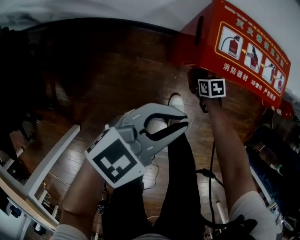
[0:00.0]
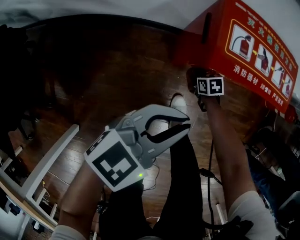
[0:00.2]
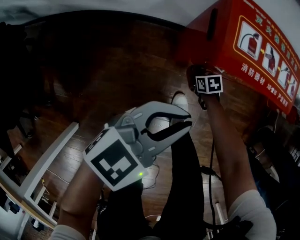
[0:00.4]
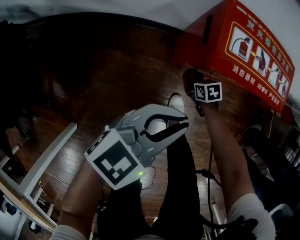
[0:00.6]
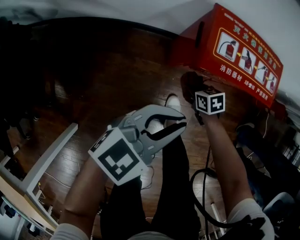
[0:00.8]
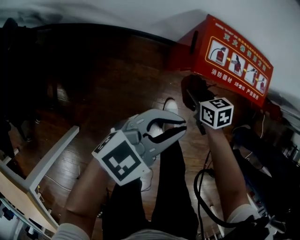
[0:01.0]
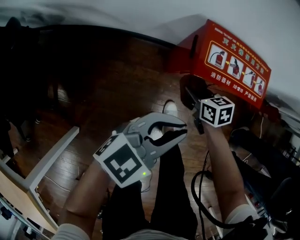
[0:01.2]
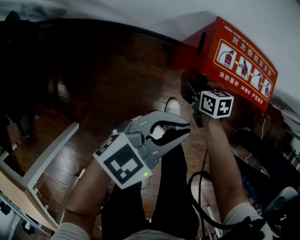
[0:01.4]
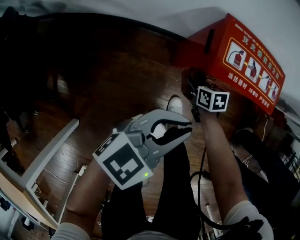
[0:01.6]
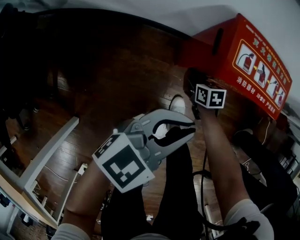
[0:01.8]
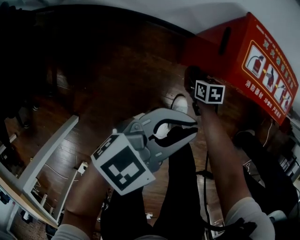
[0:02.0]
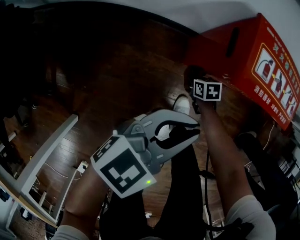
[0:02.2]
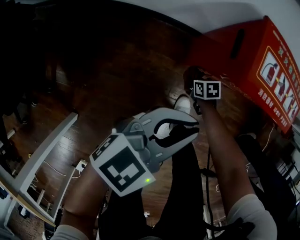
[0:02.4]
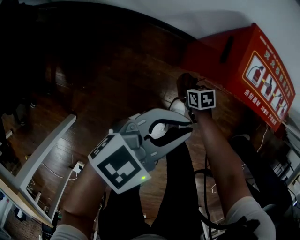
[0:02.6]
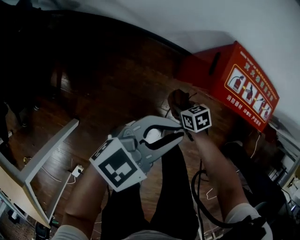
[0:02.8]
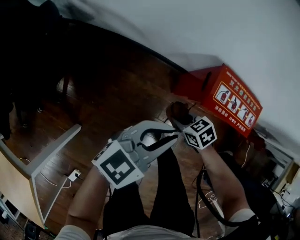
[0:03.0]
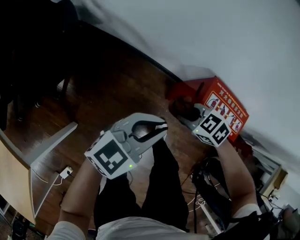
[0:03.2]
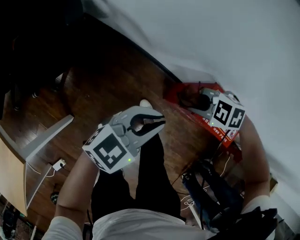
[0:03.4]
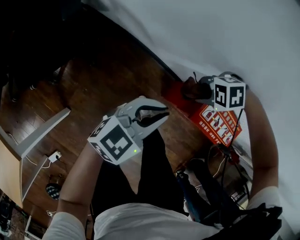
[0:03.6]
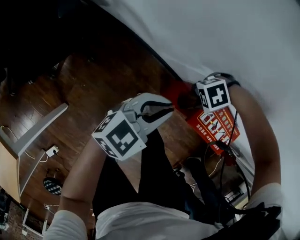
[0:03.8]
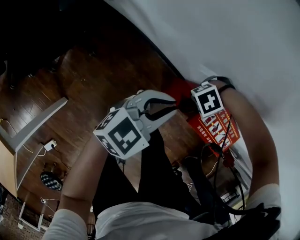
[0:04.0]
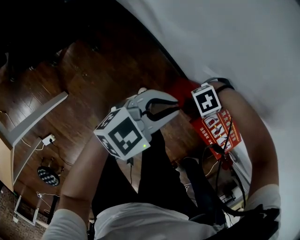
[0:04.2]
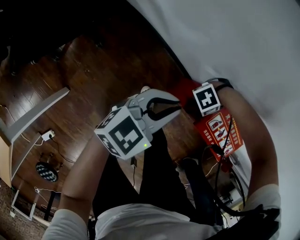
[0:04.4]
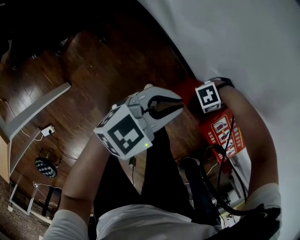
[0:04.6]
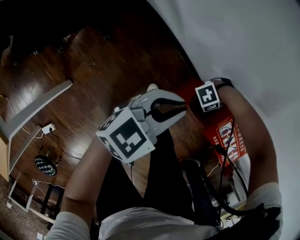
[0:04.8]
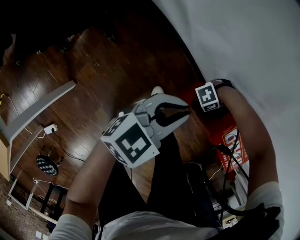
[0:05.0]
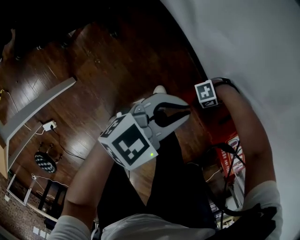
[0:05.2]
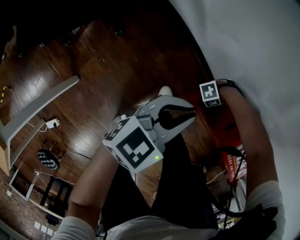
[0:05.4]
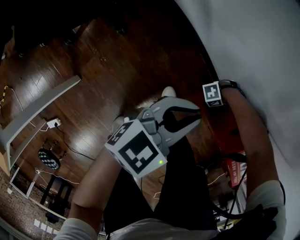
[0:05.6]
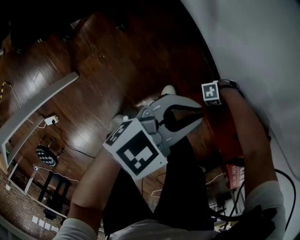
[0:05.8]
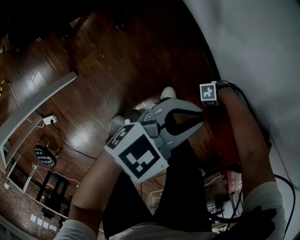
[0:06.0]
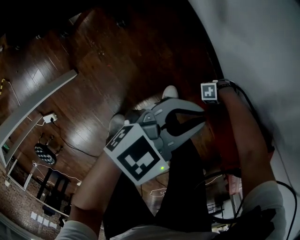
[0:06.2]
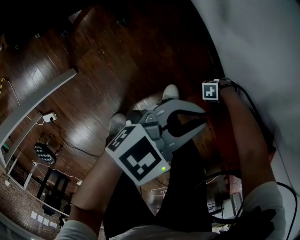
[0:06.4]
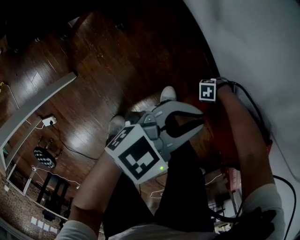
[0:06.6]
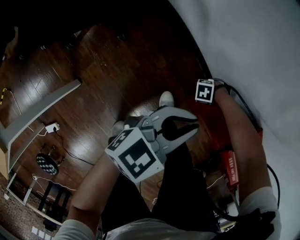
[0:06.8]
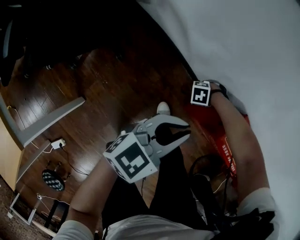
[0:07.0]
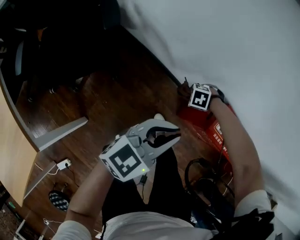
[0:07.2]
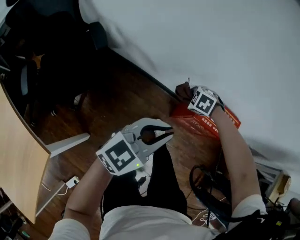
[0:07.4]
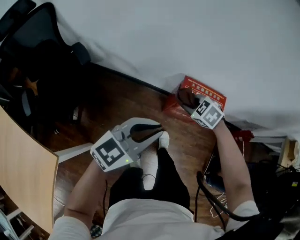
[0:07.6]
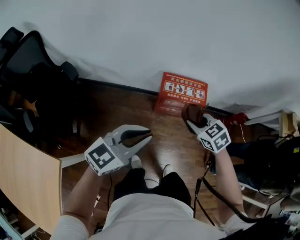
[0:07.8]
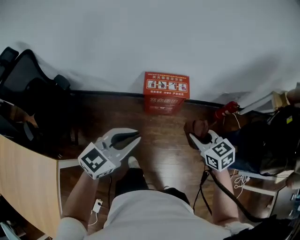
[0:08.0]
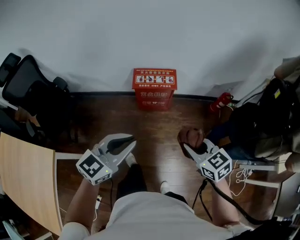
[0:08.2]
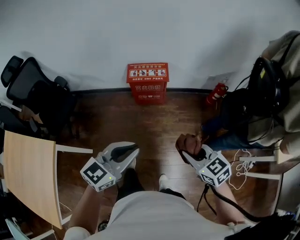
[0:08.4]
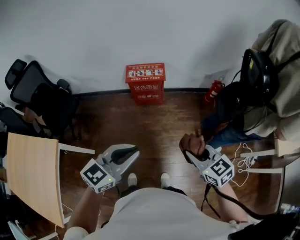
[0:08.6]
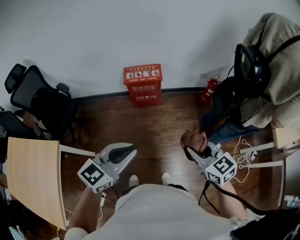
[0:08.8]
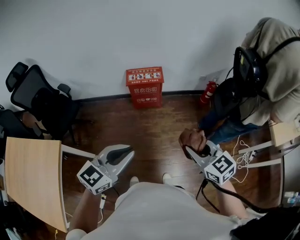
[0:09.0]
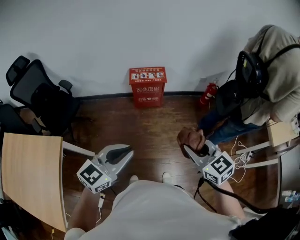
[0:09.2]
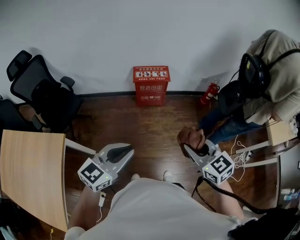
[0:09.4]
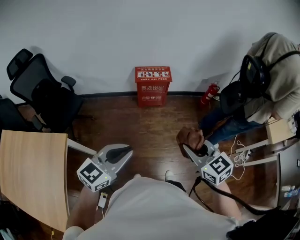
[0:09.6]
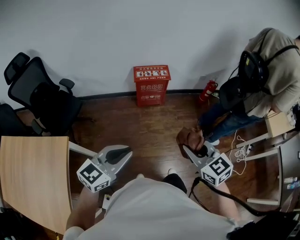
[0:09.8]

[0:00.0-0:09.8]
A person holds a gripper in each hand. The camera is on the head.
0:00.0 to 0:01.4: The left gripper ends up about 5 cm from where it was; the right gripper moves up and down over some 25 cm, changing direction 2 times.
0:01.4 to 0:02.8: The right gripper goes downward and returns, roughly 20 cm each way, and swivels some 30 degrees. Meanwhile the left gripper ends up some 5 cm from where it was.
0:02.8 to 0:04.2: The left gripper shifts by approximately 15 cm, and rotates about 20 degrees. Meanwhile the right gripper moves upward, about 20 cm, and turns by roughly 120 degrees.
0:04.2 to 0:05.6: The left gripper travels downward and backward by about 10 cm. The right gripper goes approximately 25 cm downward.
0:05.6 to 0:07.0: The left gripper is displaced upward and to the right by roughly 15 cm. The right gripper moves backward and upward, some 15 cm, and tilts its fingers roughly 40 degrees downward.
0:07.0 to 0:08.4: The pair of grippers is taken approximately 60 cm. The left gripper changes its angle by some 30 degrees. Meanwhile the right gripper tips its fingers upward by approximately 30 degrees.
0:08.4 to 0:09.8: The right gripper is displaced backward, to the left and upward by roughly 20 cm; the left gripper shifts approximately 20 cm to the left and backward.

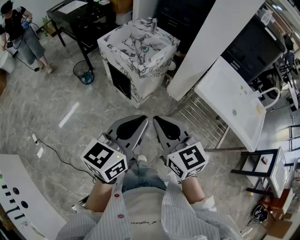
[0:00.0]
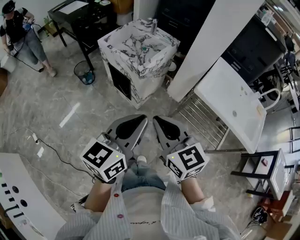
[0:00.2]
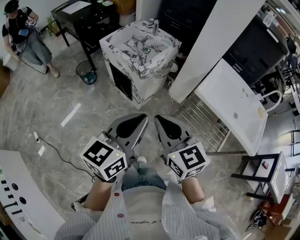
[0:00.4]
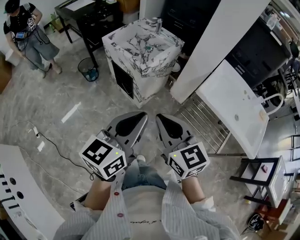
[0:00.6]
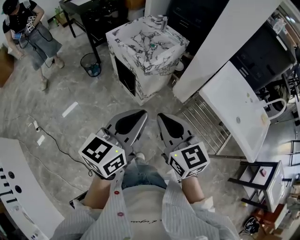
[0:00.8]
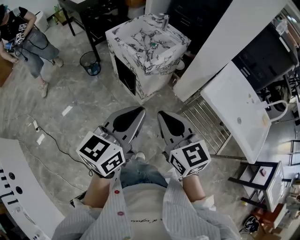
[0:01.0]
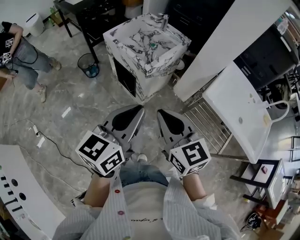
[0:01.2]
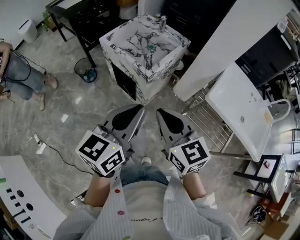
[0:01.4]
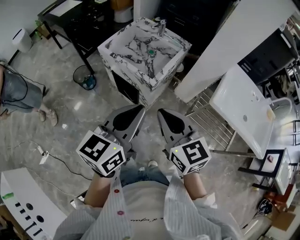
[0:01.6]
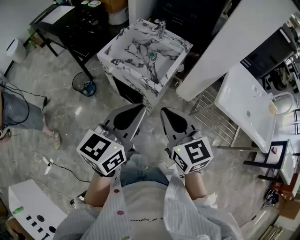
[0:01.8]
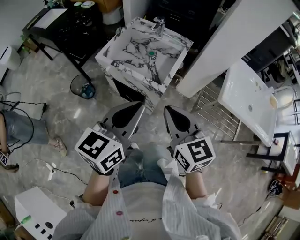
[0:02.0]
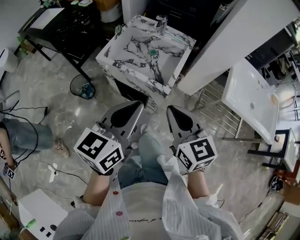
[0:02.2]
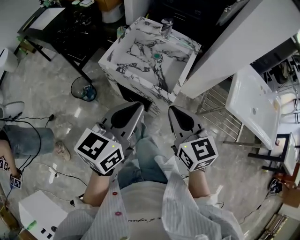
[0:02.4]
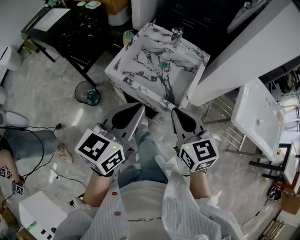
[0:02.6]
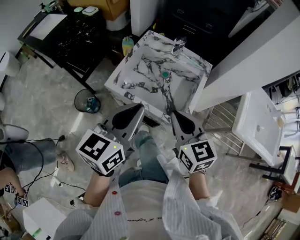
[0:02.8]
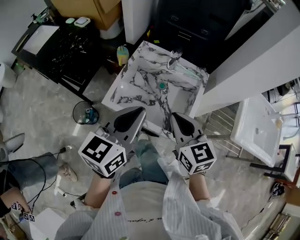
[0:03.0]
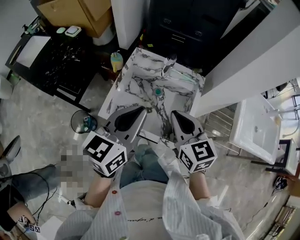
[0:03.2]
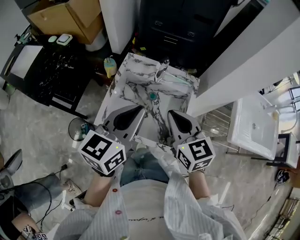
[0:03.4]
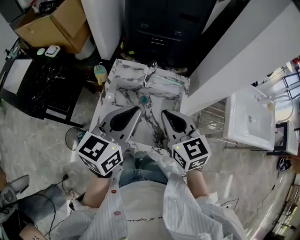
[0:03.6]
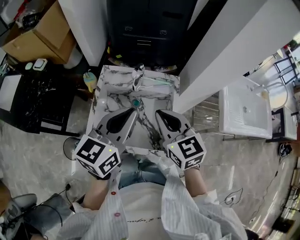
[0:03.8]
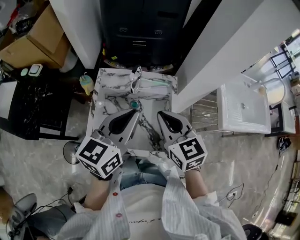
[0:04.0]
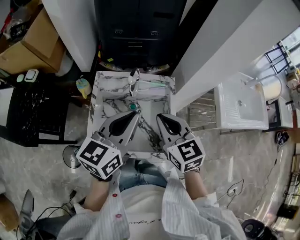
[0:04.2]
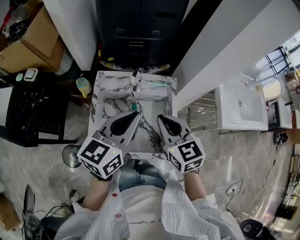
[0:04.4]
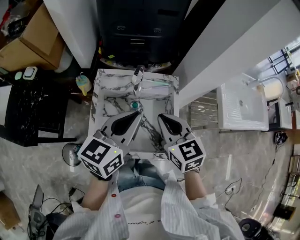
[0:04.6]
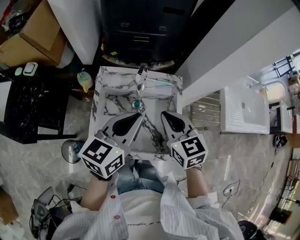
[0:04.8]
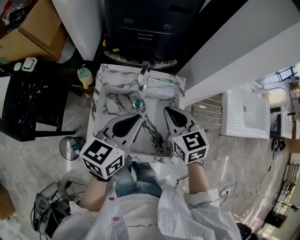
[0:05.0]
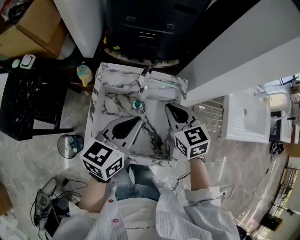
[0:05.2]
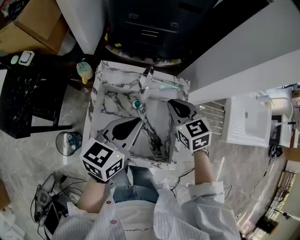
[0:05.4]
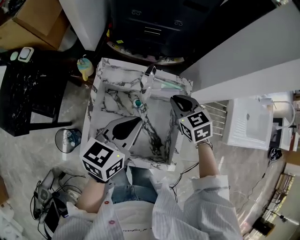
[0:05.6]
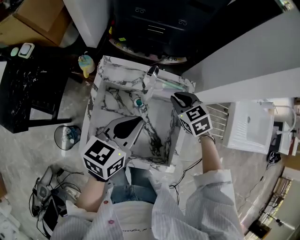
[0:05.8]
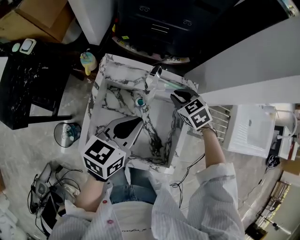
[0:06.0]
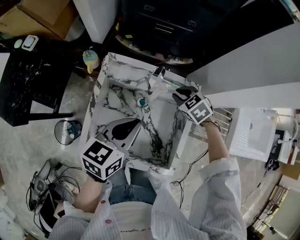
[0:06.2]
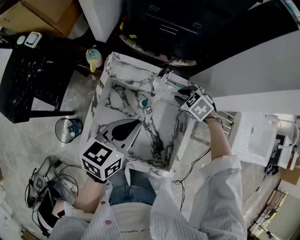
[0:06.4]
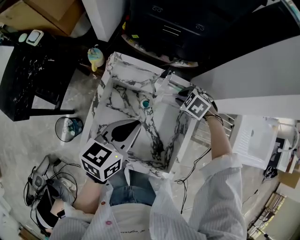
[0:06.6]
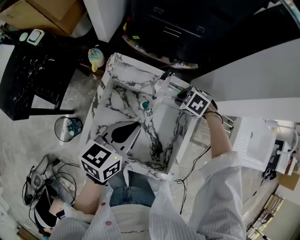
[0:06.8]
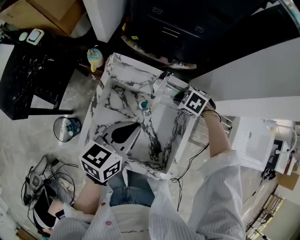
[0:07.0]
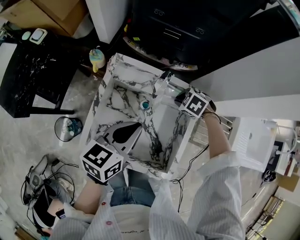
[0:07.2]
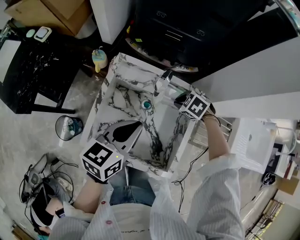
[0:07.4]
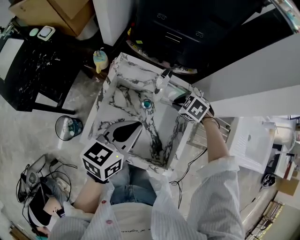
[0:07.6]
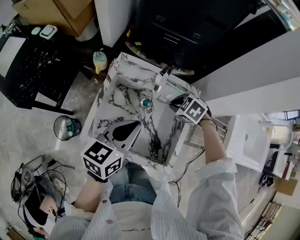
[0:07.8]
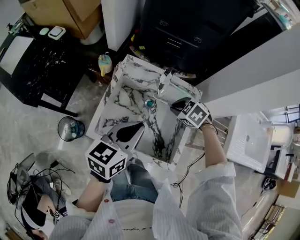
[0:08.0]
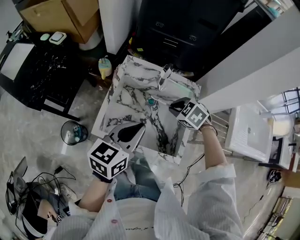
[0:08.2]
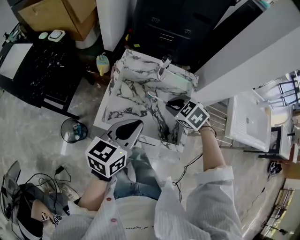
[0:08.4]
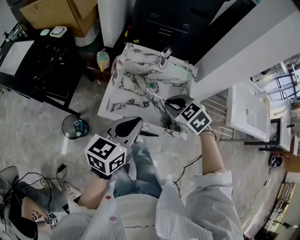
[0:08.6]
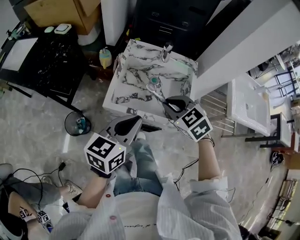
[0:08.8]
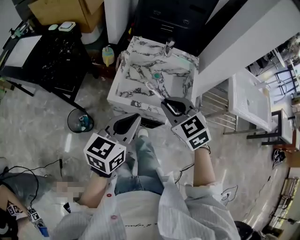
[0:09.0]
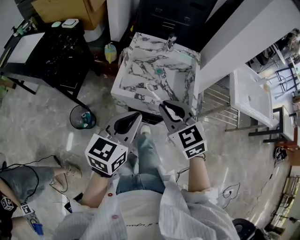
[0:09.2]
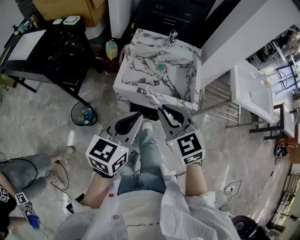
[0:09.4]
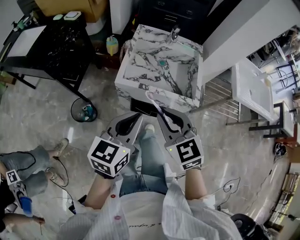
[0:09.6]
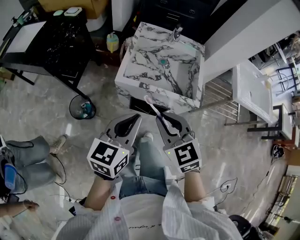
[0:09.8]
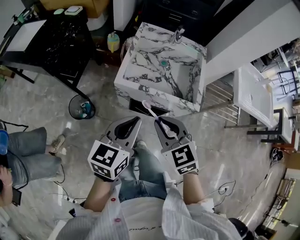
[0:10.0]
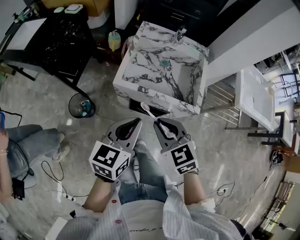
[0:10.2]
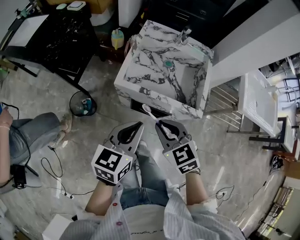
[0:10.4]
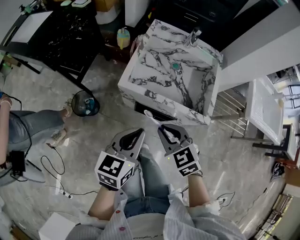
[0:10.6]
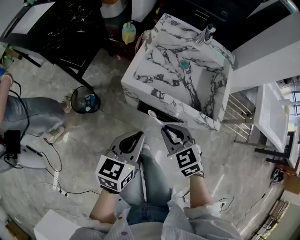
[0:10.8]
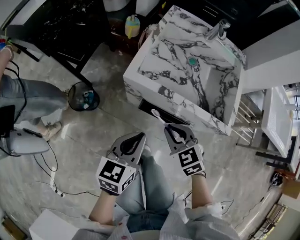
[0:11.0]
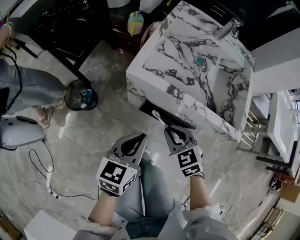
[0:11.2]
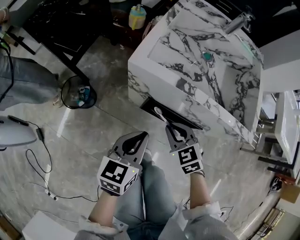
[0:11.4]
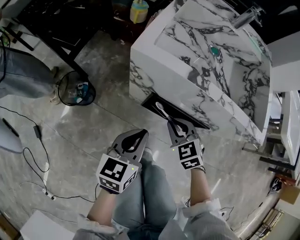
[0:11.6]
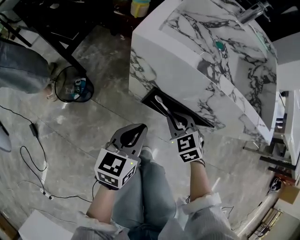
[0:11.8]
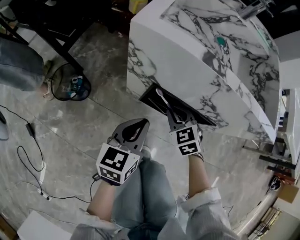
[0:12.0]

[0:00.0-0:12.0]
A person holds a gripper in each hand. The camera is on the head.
0:00.0 to 0:01.6: The right gripper goes about 15 cm forward. Meanwhile the left gripper shifts approximately 20 cm forward and to the left.
0:01.6 to 0:03.0: The two grippers go some 35 cm forward and to the left.
0:03.0 to 0:04.4: Both grippers move forward, some 15 cm. The left gripper rotates some 20 degrees.
0:04.4 to 0:06.0: The left gripper goes about 10 cm downward, while the right gripper is displaced downward and forward by about 25 cm, and angles its fingers downward, by roughly 30 degrees.
0:06.0 to 0:07.6: The right gripper rotates approximately 30 degrees.
0:07.6 to 0:09.0: The left gripper heads backward and to the left, covering approximately 25 cm, while the right gripper is displaced backward, to the left and upward by roughly 40 cm, and tilts its fingers some 40 degrees upward.
0:09.0 to 0:10.4: The left gripper shifts some 10 cm downward and backward, while the right gripper heads backward and downward, covering some 15 cm.
0:10.4 to 0:12.0: Both grippers move downward, roughly 40 cm.

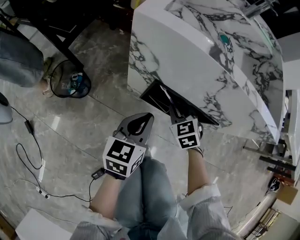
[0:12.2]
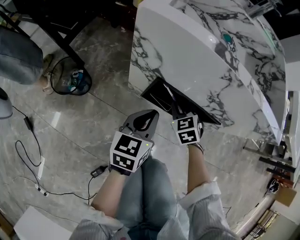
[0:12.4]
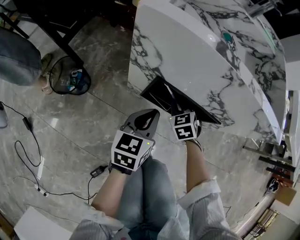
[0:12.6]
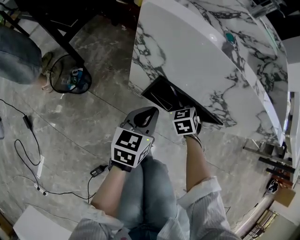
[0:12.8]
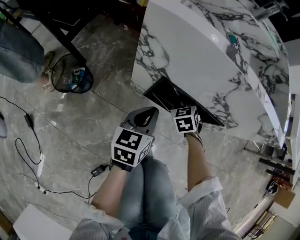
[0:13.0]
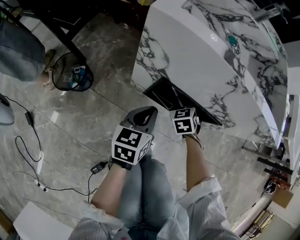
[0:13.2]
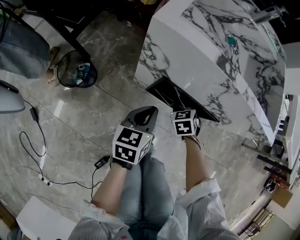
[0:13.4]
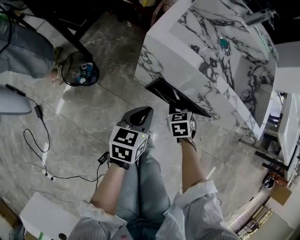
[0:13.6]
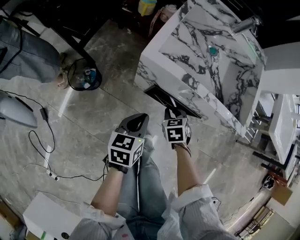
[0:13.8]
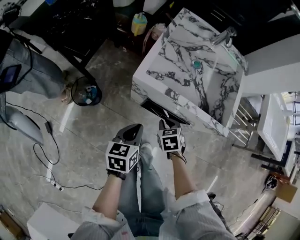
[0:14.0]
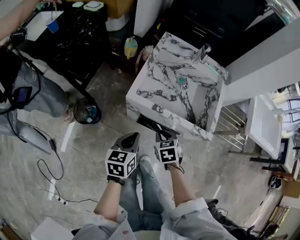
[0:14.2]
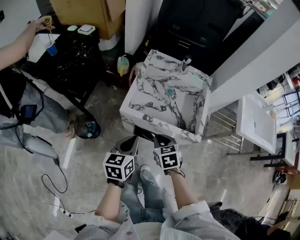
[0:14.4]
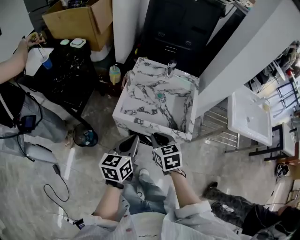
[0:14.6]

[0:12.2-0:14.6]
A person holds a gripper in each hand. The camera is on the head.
0:13.4 to 0:14.6: Both grippers travel together upward, roughly 40 cm. The right gripper changes its angle by roughly 30 degrees.
